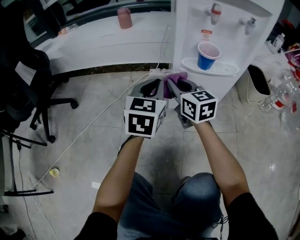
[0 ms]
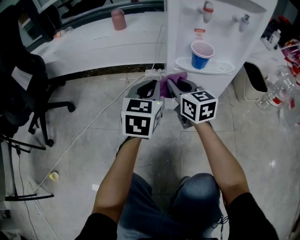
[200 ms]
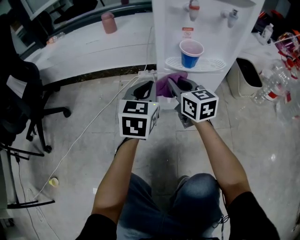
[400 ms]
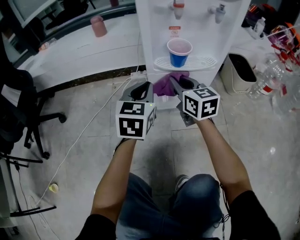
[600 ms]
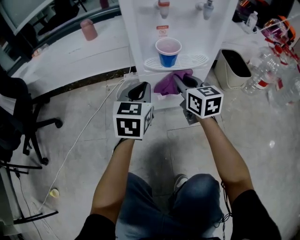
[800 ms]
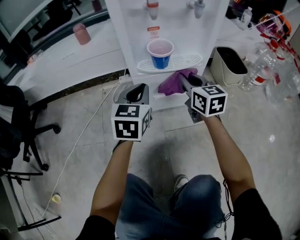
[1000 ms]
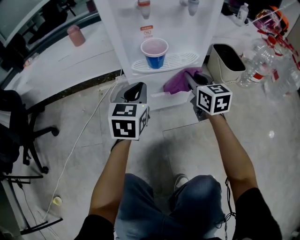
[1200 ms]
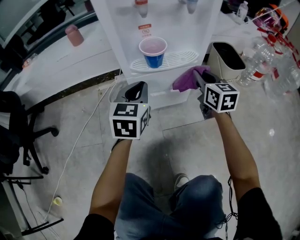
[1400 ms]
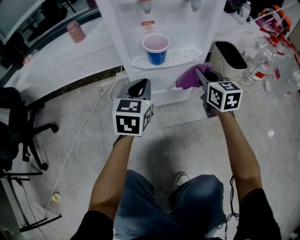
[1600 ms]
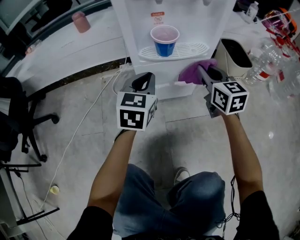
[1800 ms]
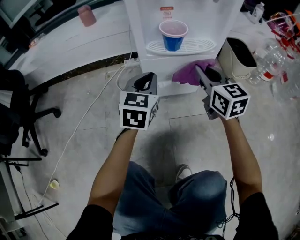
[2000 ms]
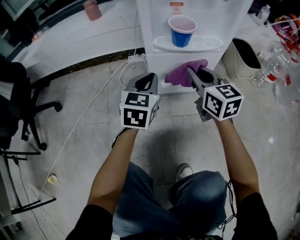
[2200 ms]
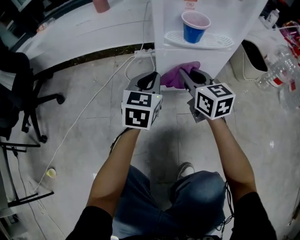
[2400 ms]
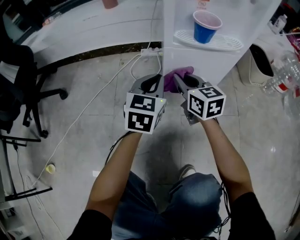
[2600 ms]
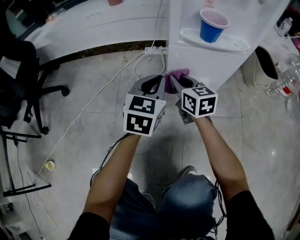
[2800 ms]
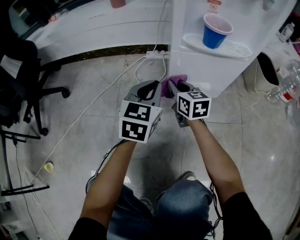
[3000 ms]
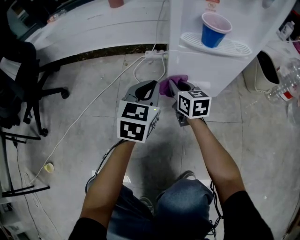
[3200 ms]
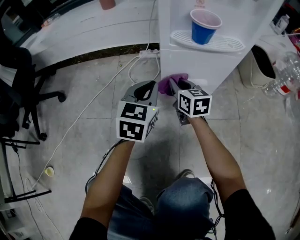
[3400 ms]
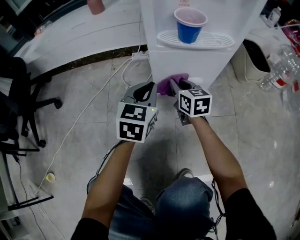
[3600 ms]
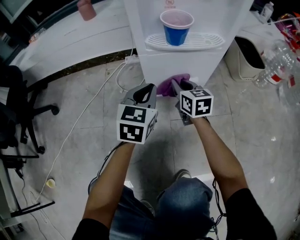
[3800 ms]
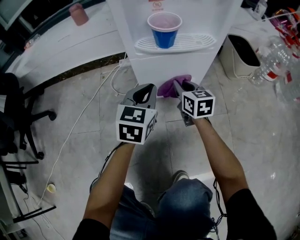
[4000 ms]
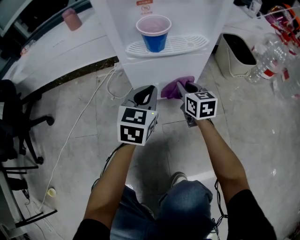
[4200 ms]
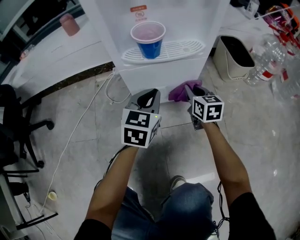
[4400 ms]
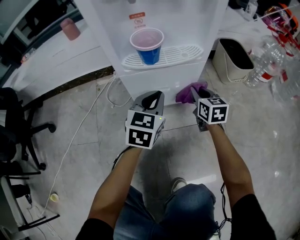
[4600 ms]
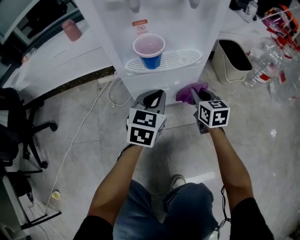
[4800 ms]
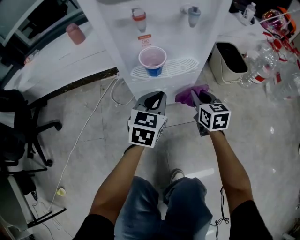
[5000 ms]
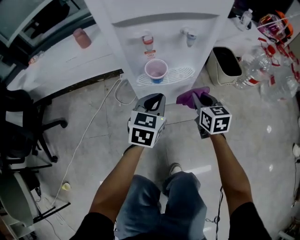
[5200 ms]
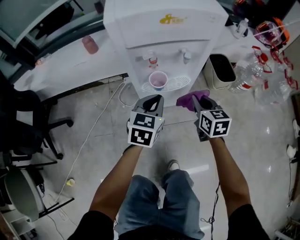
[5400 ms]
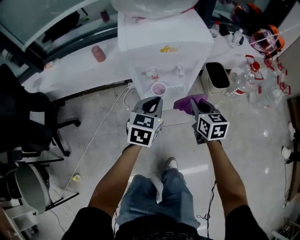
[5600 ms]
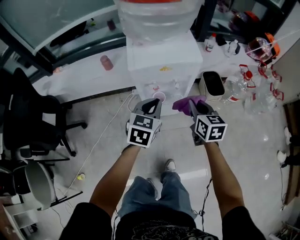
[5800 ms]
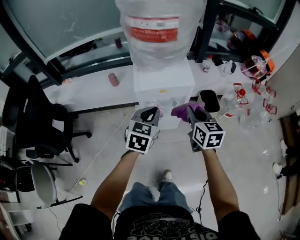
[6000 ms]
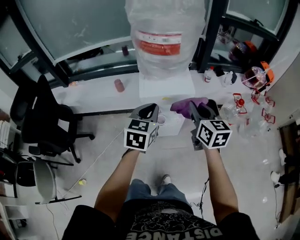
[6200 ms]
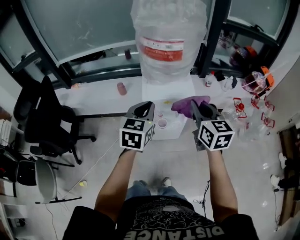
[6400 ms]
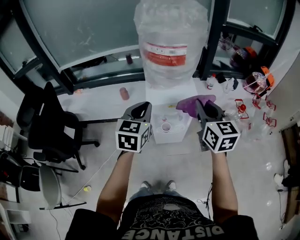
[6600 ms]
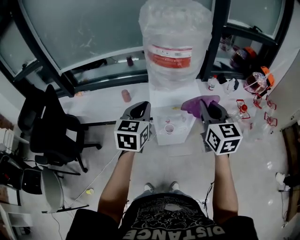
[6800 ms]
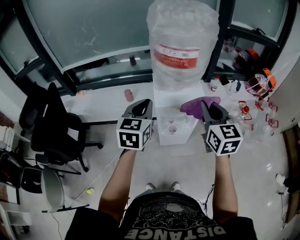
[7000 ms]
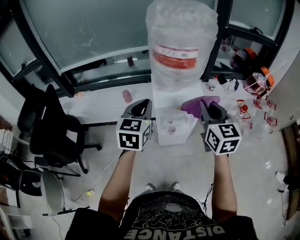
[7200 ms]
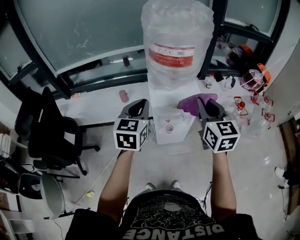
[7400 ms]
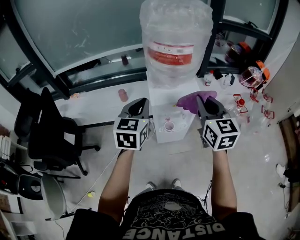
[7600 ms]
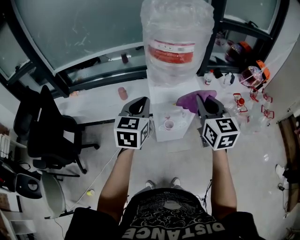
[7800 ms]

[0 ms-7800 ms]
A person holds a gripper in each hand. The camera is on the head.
0 ms to 1600 ms: The right gripper is displaced to the right by about 25 cm, and changes its angle by about 20 degrees. Meanwhile the left gripper moves to the right, approximately 10 cm.
1600 ms to 3200 ms: The right gripper shifts roughly 30 cm to the left and downward, and rotates some 20 degrees. Meanwhile the left gripper shifts some 15 cm to the left and downward.
3200 ms to 4600 ms: The right gripper shifts about 25 cm to the right. The left gripper goes some 15 cm to the right.
4600 ms to 6200 ms: The grippers both shift upward by roughly 70 cm.
6200 ms to 7800 ms: The left gripper is displaced to the left and upward by about 10 cm, while the right gripper heads upward and to the left, covering some 10 cm.

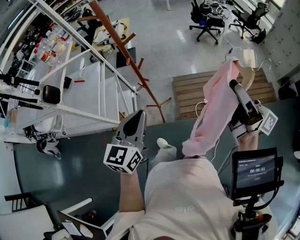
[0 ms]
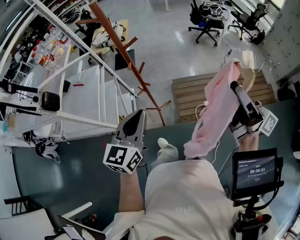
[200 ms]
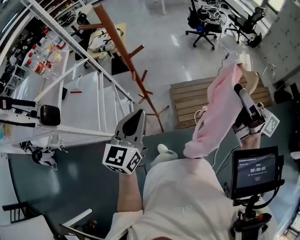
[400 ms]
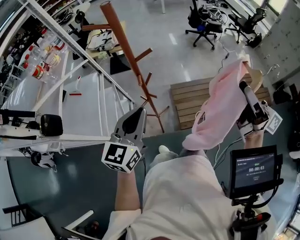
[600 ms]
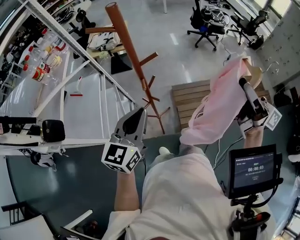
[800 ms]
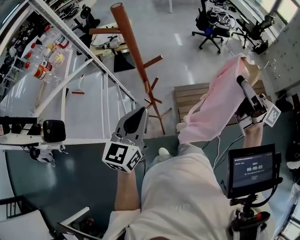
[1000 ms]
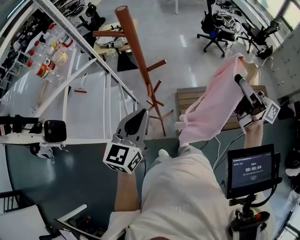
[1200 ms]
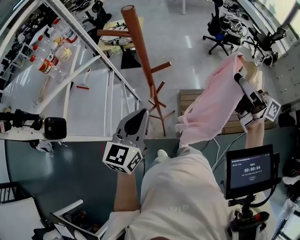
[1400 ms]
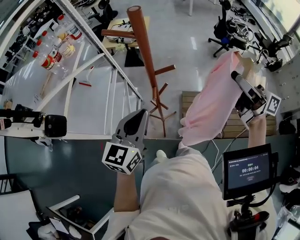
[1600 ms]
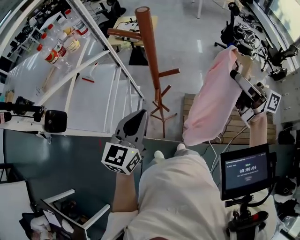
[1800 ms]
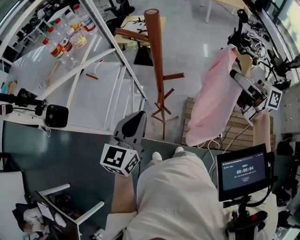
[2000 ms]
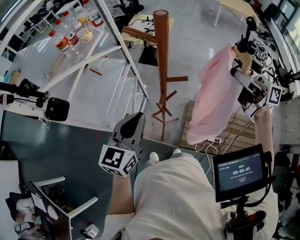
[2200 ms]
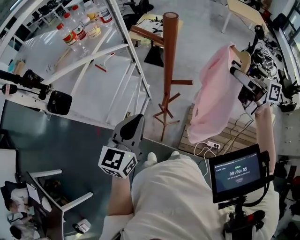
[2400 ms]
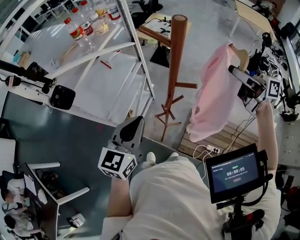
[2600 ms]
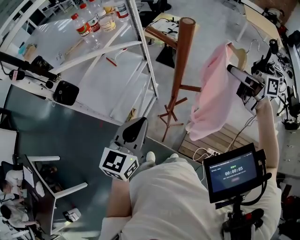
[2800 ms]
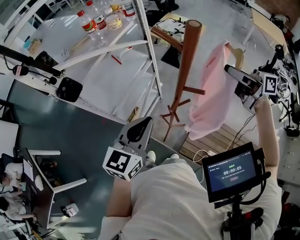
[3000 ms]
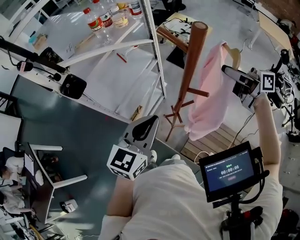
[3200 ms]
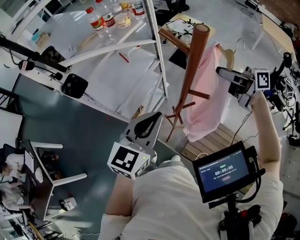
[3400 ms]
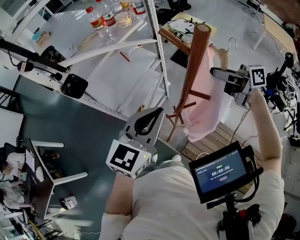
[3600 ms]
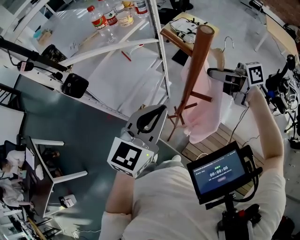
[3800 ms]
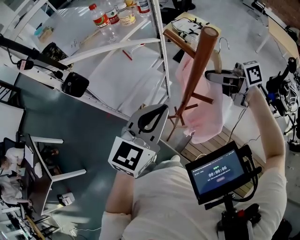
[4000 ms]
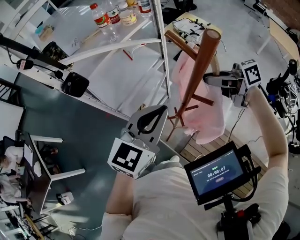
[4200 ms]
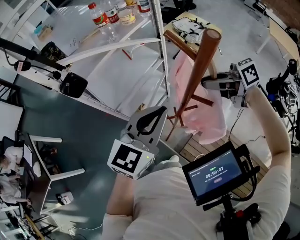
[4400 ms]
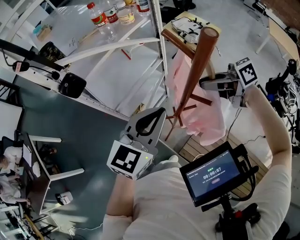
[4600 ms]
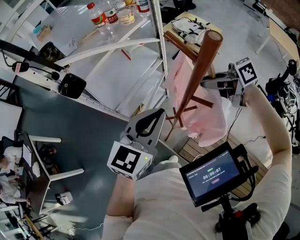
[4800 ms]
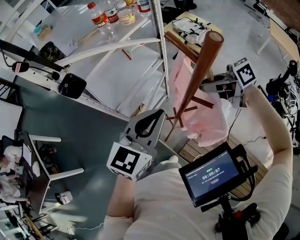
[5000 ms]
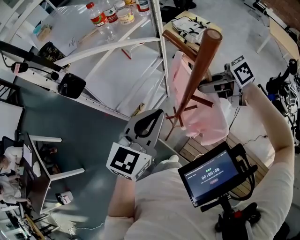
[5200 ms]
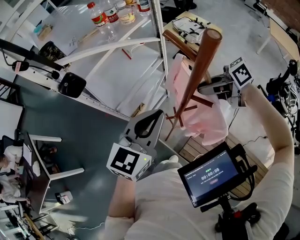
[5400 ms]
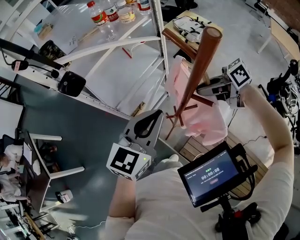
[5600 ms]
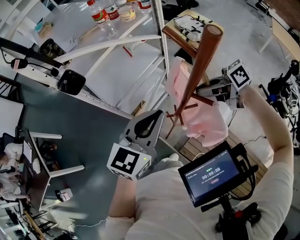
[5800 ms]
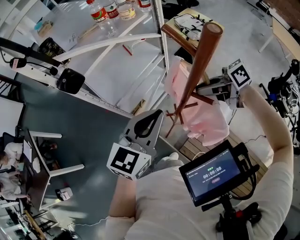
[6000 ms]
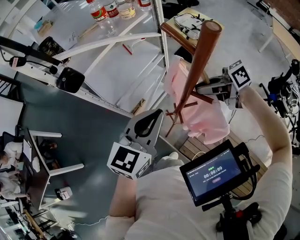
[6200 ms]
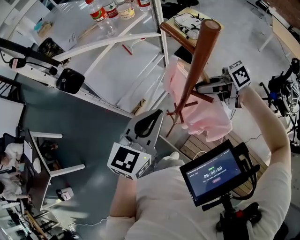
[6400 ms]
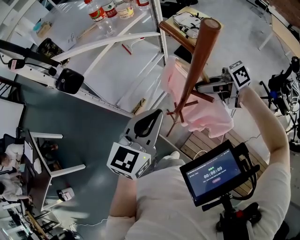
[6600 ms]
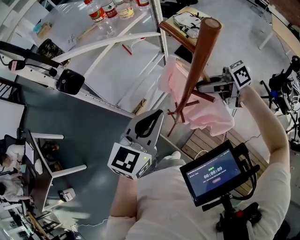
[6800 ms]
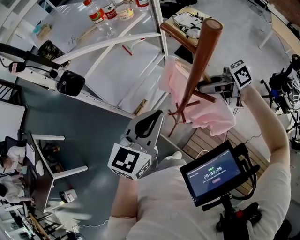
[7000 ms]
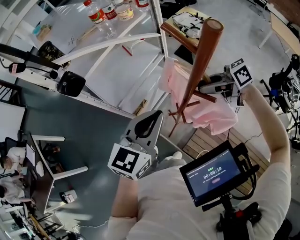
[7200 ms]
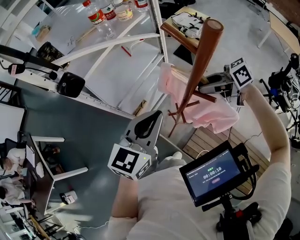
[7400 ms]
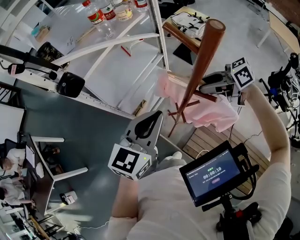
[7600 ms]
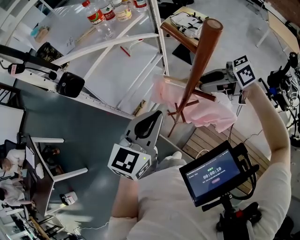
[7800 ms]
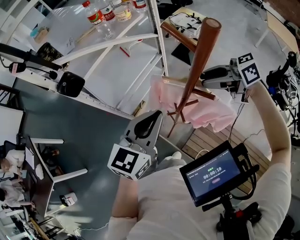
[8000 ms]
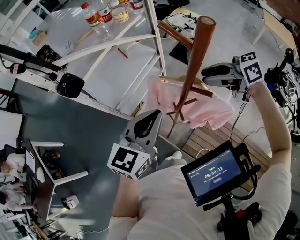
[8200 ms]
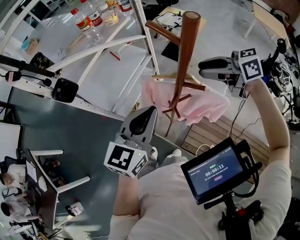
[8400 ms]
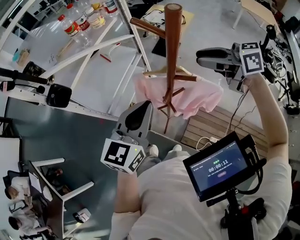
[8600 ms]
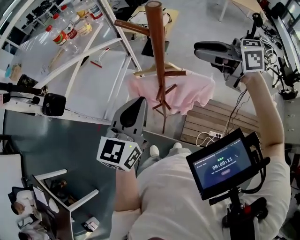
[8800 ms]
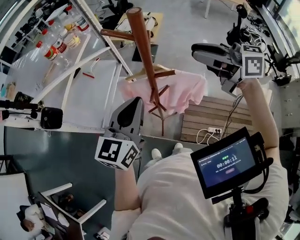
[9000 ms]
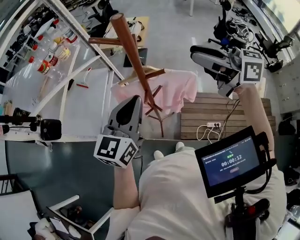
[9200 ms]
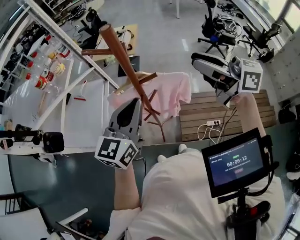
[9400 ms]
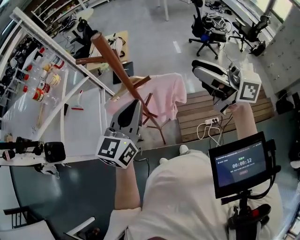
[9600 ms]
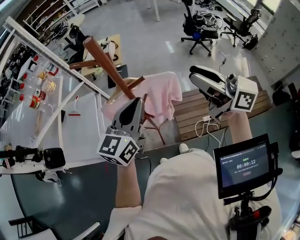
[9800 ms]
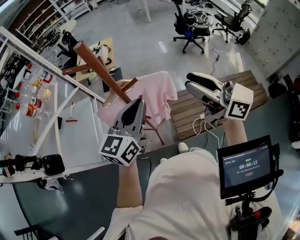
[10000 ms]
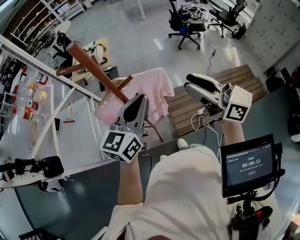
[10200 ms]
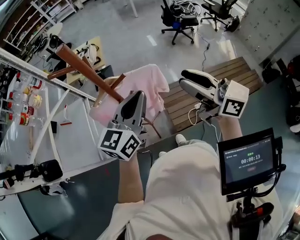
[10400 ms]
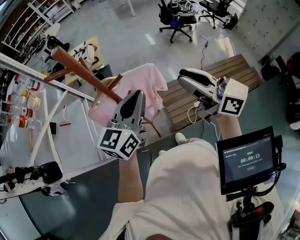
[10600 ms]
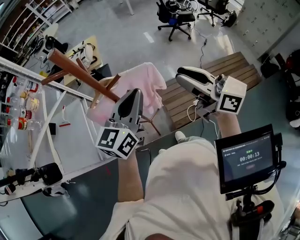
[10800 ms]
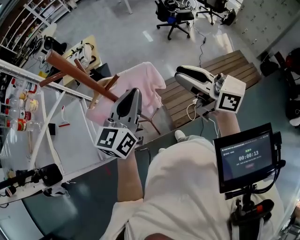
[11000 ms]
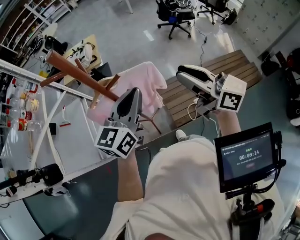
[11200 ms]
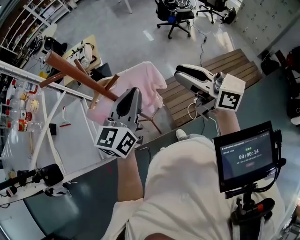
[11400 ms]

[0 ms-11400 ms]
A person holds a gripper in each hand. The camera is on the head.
0 ms to 1400 ms: The grippers both shift forward by approximately 25 cm.
1400 ms to 2800 ms: The left gripper turns by approximately 30 degrees; the right gripper shifts by roughly 25 cm, and swivels about 40 degrees.
2800 ms to 4200 ms: The right gripper is displaced to the left, forward and downward by some 15 cm, and swivels approximately 30 degrees; the left gripper shifts approximately 5 cm to the right.
4200 ms to 5600 ms: The right gripper travels downward by approximately 5 cm.
5600 ms to 7200 ms: The grippers stay close to where they were, moving slightly.
7200 ms to 8600 ms: The right gripper goes some 10 cm upward, and turns by about 30 degrees.
8600 ms to 10000 ms: The left gripper moves roughly 10 cm, and changes its angle by about 40 degrees. The right gripper shifts by roughly 25 cm, and turns by some 60 degrees.
10000 ms to 11400 ms: The grippers stay close to where they were, moving slightly.

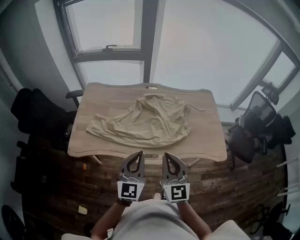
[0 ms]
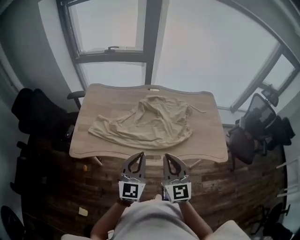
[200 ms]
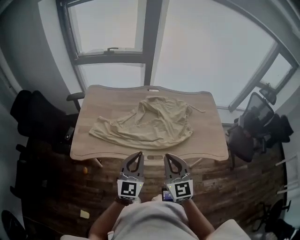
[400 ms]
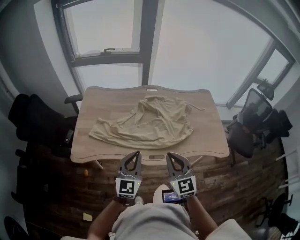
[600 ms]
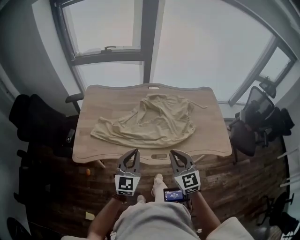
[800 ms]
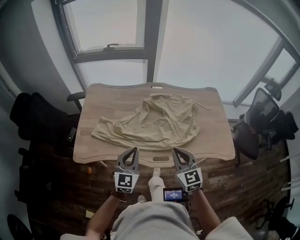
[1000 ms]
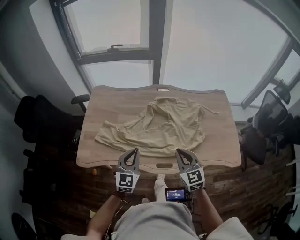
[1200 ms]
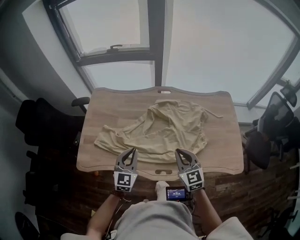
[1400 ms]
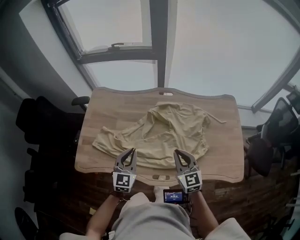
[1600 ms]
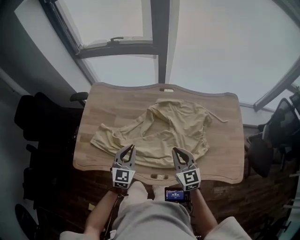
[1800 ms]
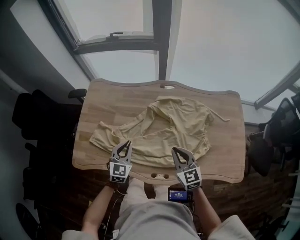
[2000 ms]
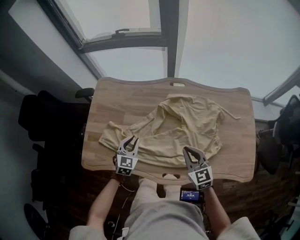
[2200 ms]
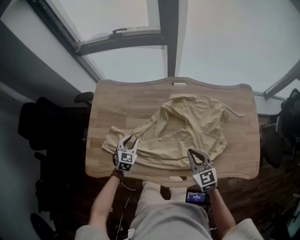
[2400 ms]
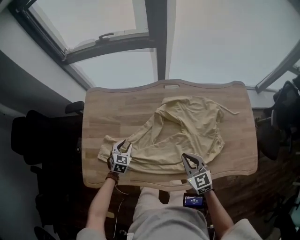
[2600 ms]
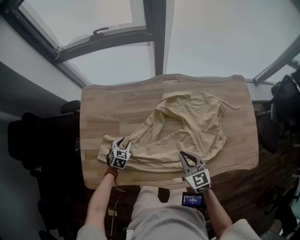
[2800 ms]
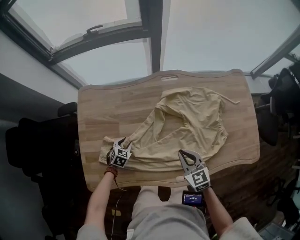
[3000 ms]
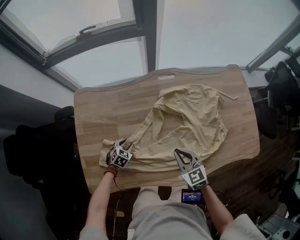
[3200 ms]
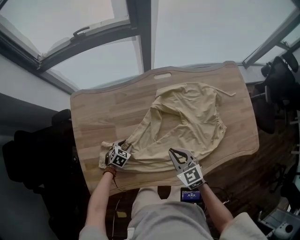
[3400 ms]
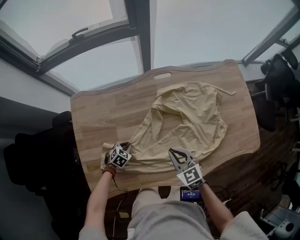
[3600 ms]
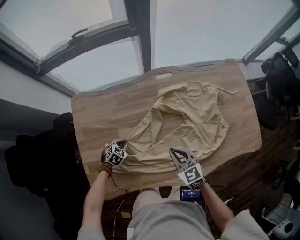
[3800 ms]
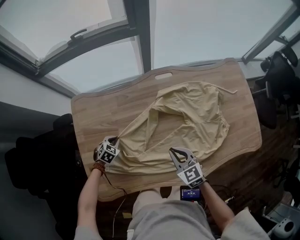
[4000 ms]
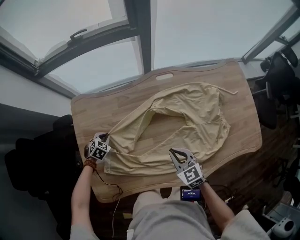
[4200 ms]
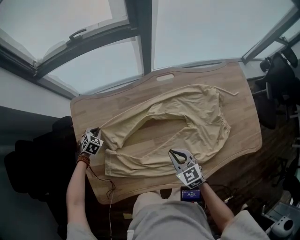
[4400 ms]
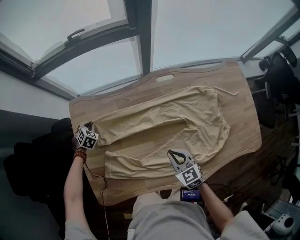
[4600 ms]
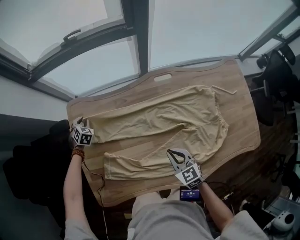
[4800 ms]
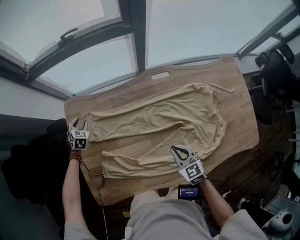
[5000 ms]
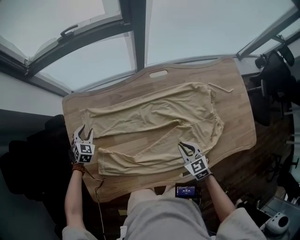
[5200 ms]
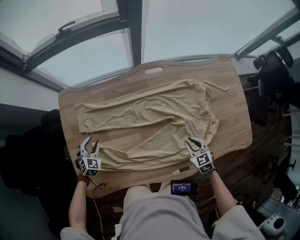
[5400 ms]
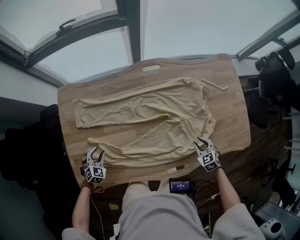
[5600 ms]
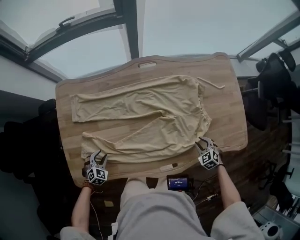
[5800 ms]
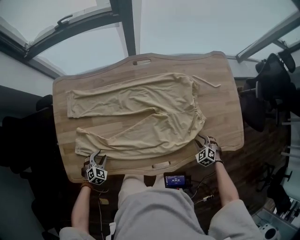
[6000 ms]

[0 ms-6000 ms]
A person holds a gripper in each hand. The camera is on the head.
0 ms to 1600 ms: Both grippers travel together forward and downward, roughly 25 cm. The left gripper turns by some 20 degrees, while the right gripper changes its angle by approximately 20 degrees.
1600 ms to 3000 ms: The left gripper heads downward, forward and to the left, covering roughly 35 cm, tips its fingers downward by approximately 40 degrees, and opens up. Meanwhile the right gripper goes approximately 15 cm downward, to the left and forward.
3000 ms to 4400 ms: The left gripper heads to the left and forward, covering roughly 20 cm, and closes its fingers, while the right gripper goes some 10 cm to the left.
4400 ms to 6000 ms: The left gripper shifts by about 35 cm, and opens its fingers, while the right gripper shifts by roughly 40 cm, rotates approximately 40 degrees, and opens its fingers.
